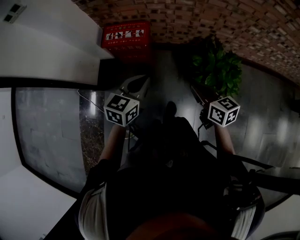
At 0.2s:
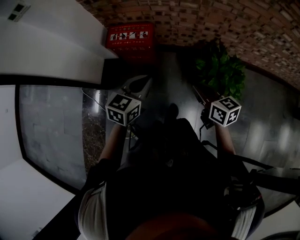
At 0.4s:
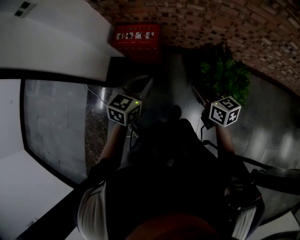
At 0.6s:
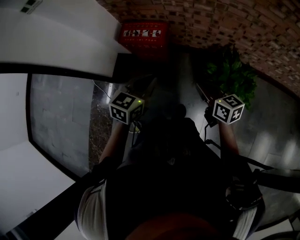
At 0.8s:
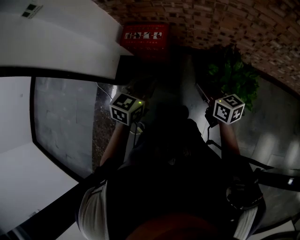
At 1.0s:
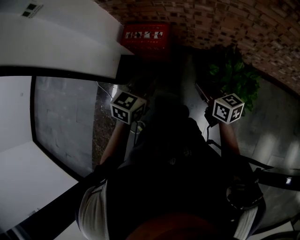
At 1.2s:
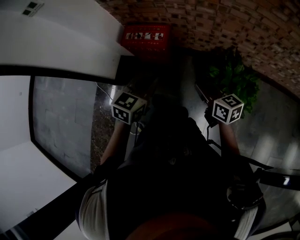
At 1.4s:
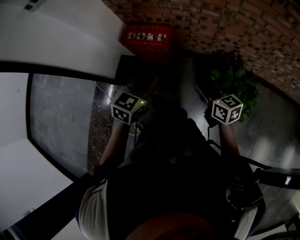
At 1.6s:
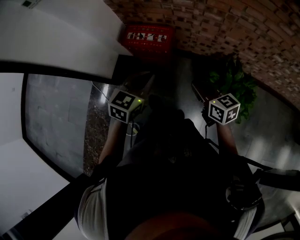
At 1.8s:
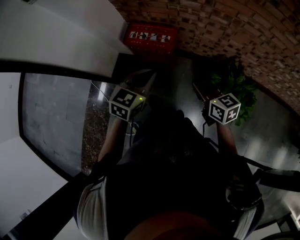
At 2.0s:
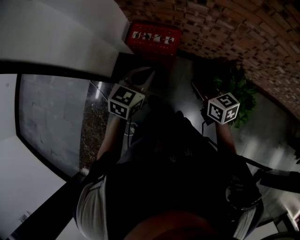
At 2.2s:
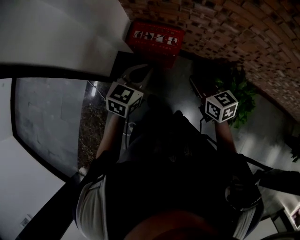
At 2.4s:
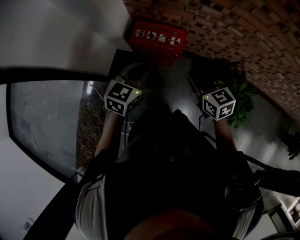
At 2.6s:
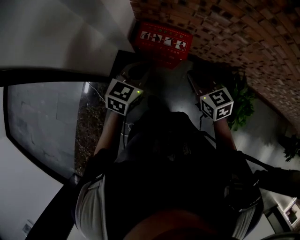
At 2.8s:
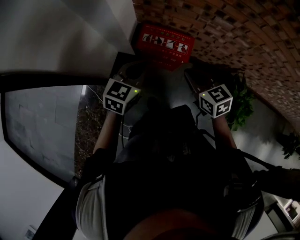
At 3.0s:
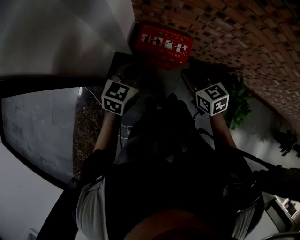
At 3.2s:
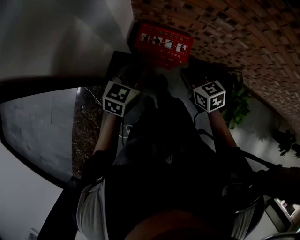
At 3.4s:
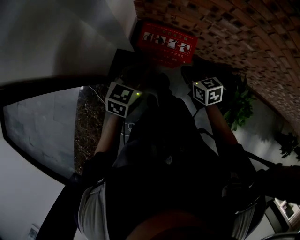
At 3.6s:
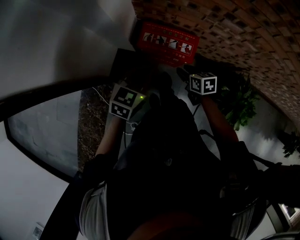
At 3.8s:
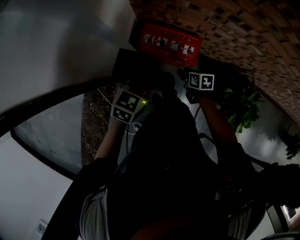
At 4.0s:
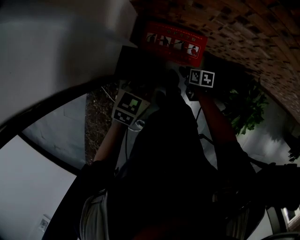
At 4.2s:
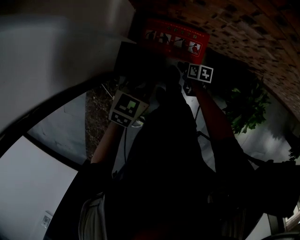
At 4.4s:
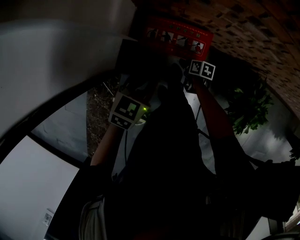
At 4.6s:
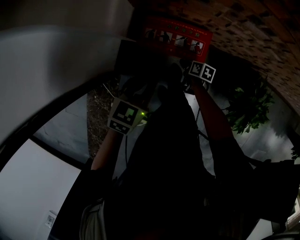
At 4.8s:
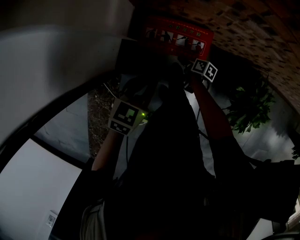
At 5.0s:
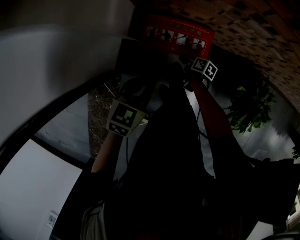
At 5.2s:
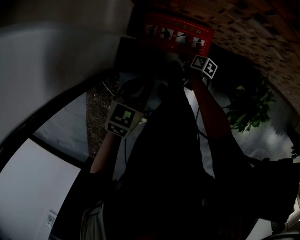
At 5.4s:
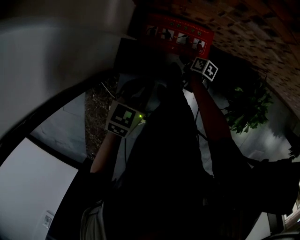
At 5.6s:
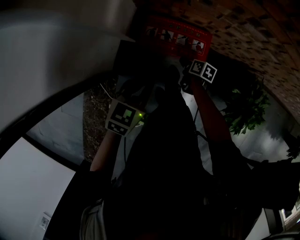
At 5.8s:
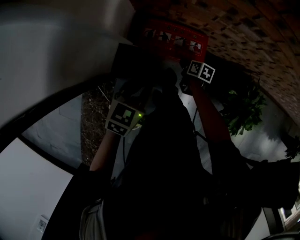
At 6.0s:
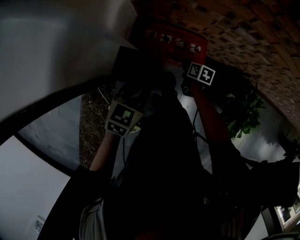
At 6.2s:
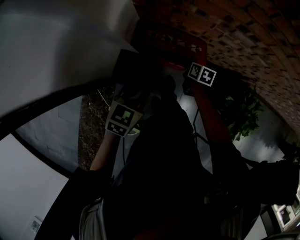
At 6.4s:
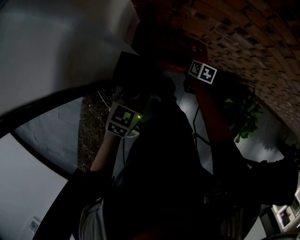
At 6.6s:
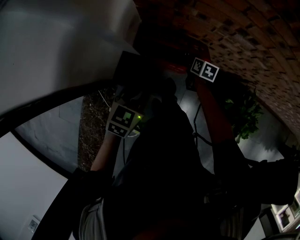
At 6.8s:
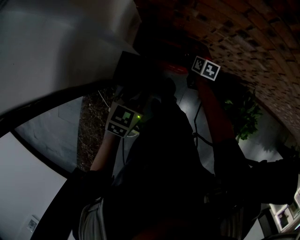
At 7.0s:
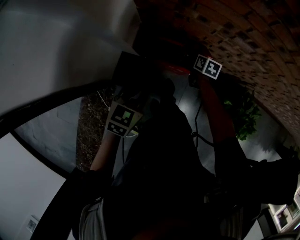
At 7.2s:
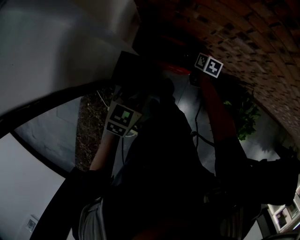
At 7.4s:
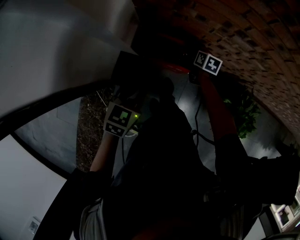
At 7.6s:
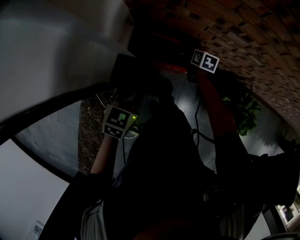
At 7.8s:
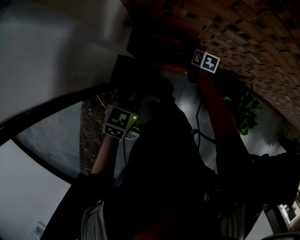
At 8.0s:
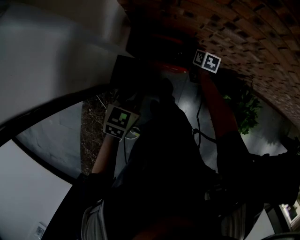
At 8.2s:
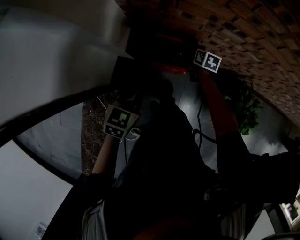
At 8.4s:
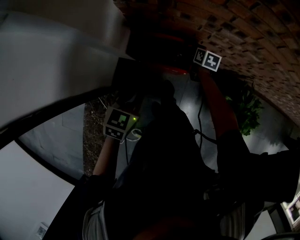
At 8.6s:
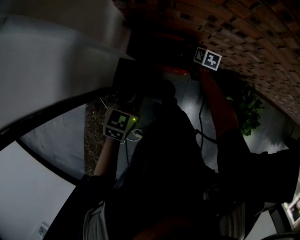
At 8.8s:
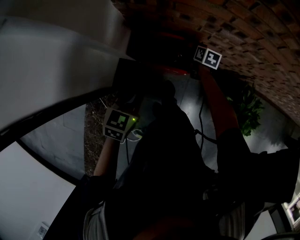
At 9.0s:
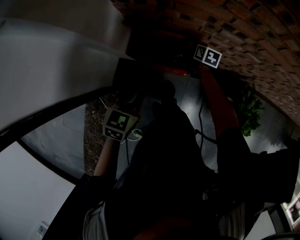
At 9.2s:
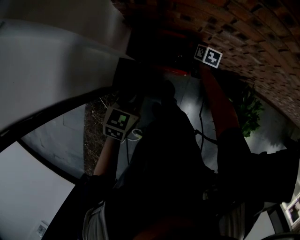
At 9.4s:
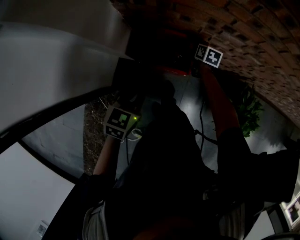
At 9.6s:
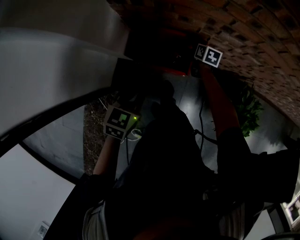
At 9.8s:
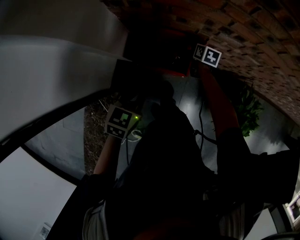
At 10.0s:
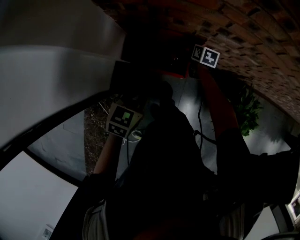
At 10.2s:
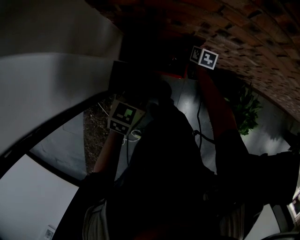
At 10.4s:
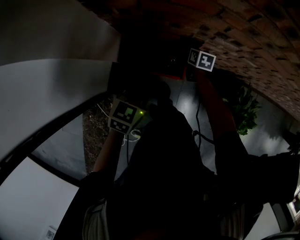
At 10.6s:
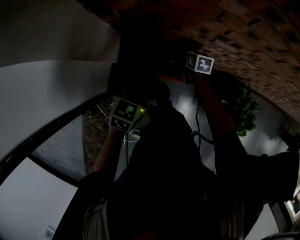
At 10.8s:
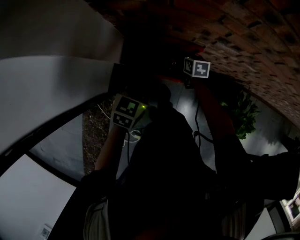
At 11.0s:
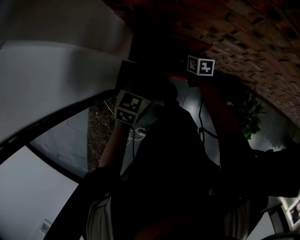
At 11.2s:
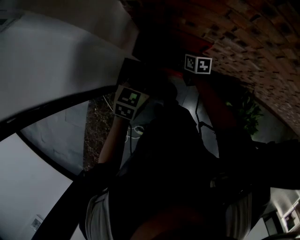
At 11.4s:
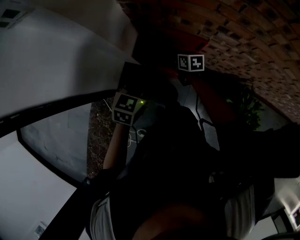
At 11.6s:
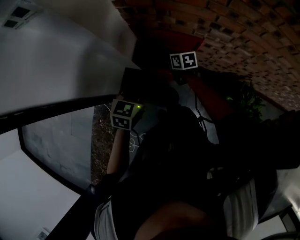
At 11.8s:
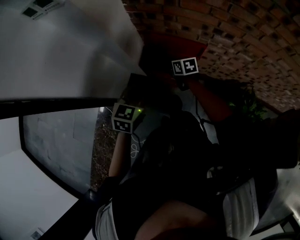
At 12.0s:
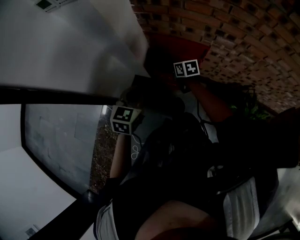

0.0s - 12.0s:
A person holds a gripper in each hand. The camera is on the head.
0.0s - 1.6s: The grippers both shift forward by about 10 cm.
1.6s - 3.0s: Both grippers travel together to the left and forward, some 30 cm.
3.0s - 4.4s: The right gripper is displaced downward by some 35 cm, twists approximately 50 degrees clockwise, seen from behind, and opens up. Meanwhile the left gripper heads downward, forward and to the right, covering some 15 cm.
4.4s - 6.0s: The right gripper travels upward by some 5 cm, and closes.
6.0s - 7.6s: The right gripper heads forward and upward, covering some 15 cm.
7.6s - 9.0s: The grippers move only a little.
9.0s - 10.4s: The left gripper shifts some 10 cm forward.
10.4s - 12.0s: The right gripper moves roughly 25 cm, and rotates roughly 30 degrees. The left gripper moves approximately 20 cm, and swivels about 20 degrees.

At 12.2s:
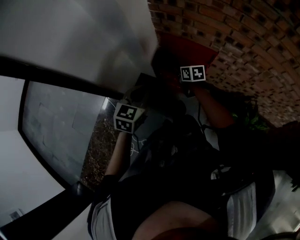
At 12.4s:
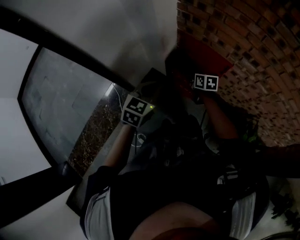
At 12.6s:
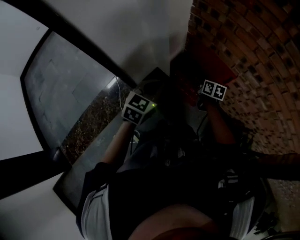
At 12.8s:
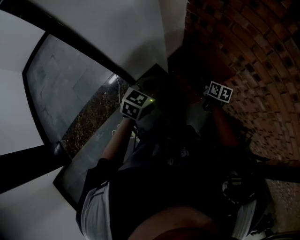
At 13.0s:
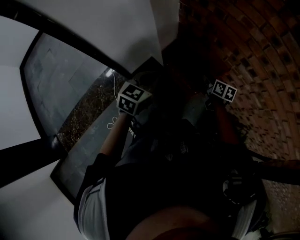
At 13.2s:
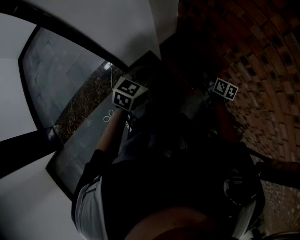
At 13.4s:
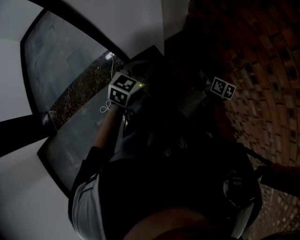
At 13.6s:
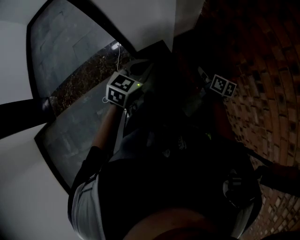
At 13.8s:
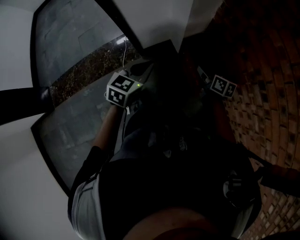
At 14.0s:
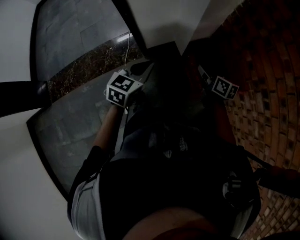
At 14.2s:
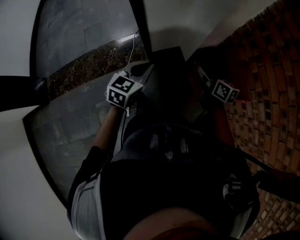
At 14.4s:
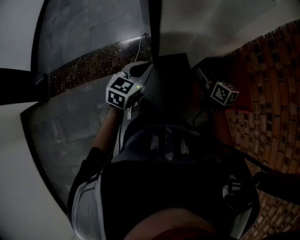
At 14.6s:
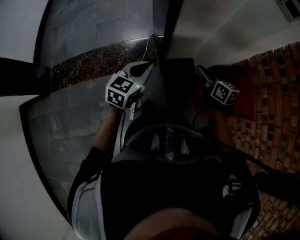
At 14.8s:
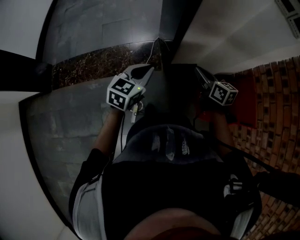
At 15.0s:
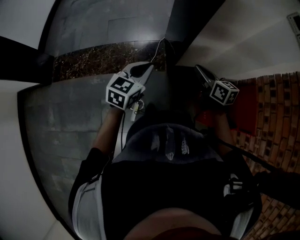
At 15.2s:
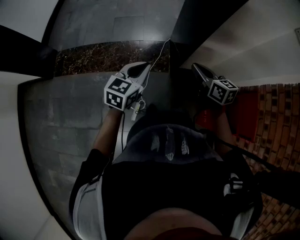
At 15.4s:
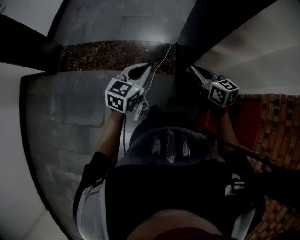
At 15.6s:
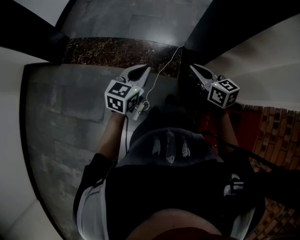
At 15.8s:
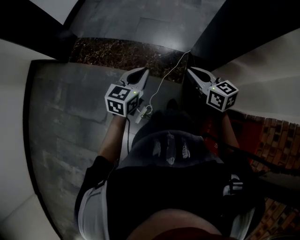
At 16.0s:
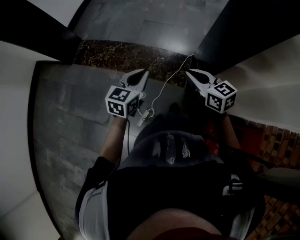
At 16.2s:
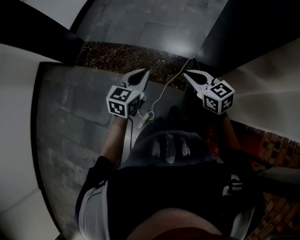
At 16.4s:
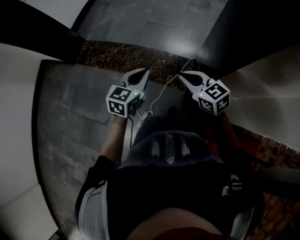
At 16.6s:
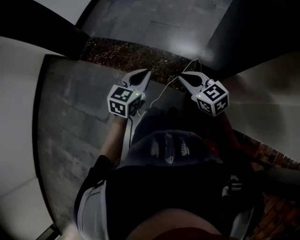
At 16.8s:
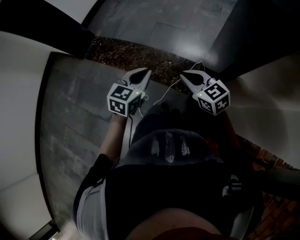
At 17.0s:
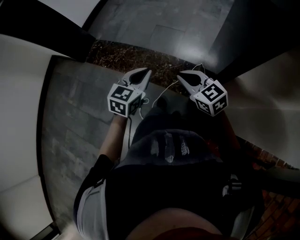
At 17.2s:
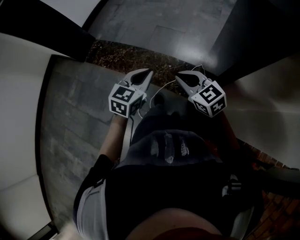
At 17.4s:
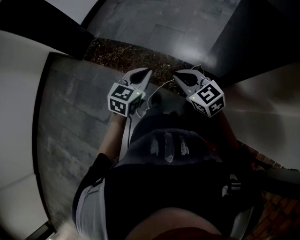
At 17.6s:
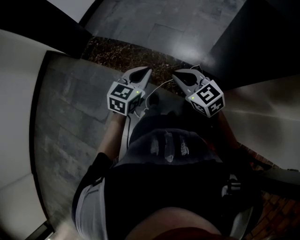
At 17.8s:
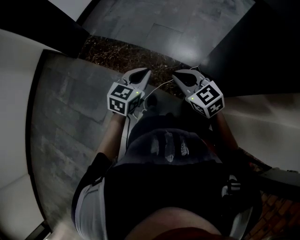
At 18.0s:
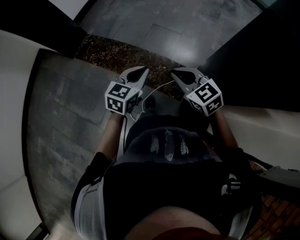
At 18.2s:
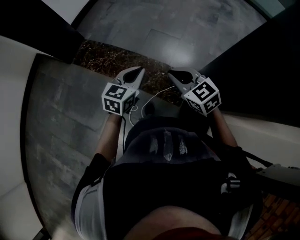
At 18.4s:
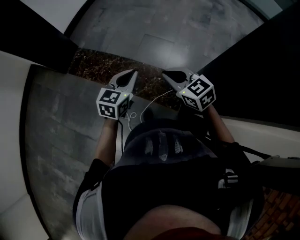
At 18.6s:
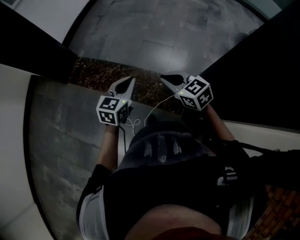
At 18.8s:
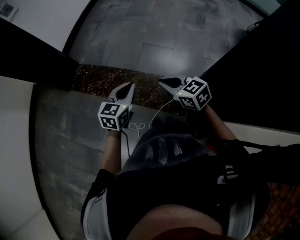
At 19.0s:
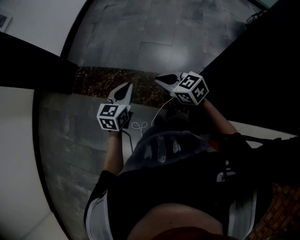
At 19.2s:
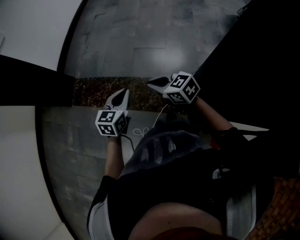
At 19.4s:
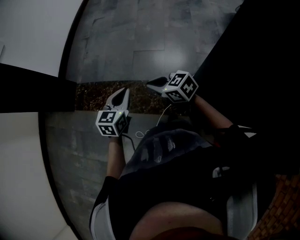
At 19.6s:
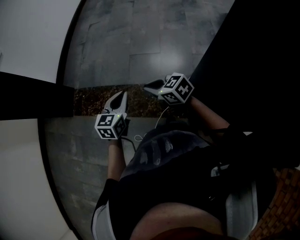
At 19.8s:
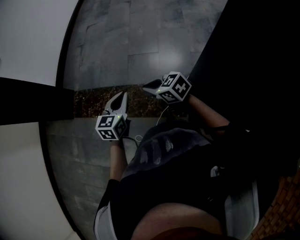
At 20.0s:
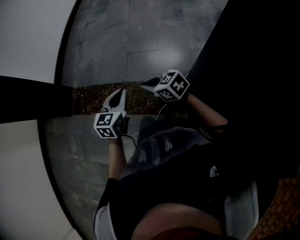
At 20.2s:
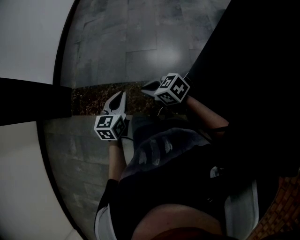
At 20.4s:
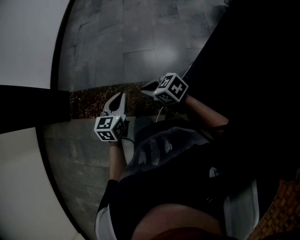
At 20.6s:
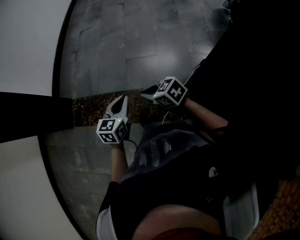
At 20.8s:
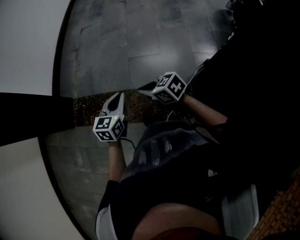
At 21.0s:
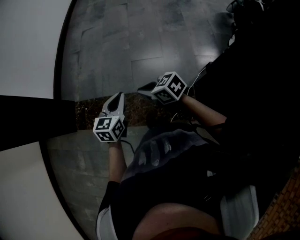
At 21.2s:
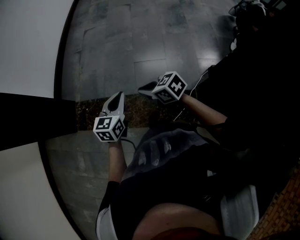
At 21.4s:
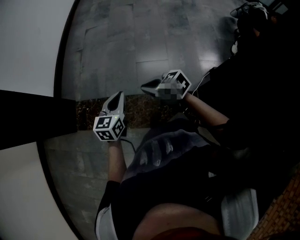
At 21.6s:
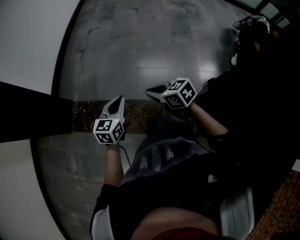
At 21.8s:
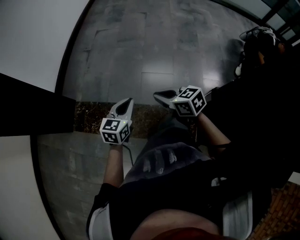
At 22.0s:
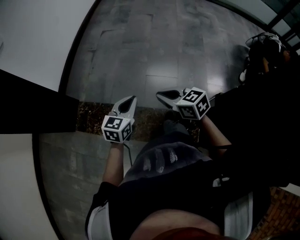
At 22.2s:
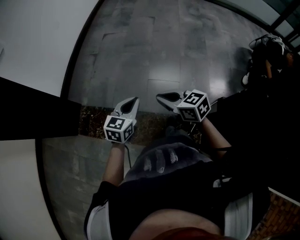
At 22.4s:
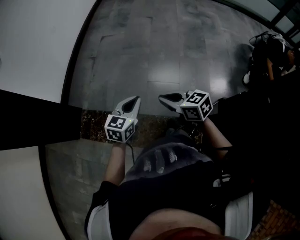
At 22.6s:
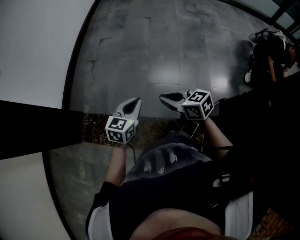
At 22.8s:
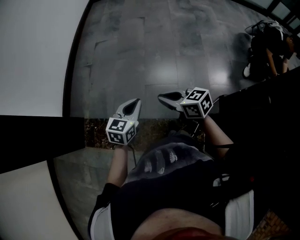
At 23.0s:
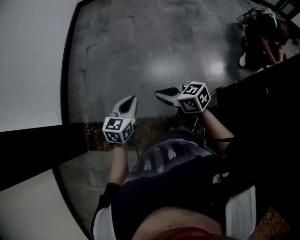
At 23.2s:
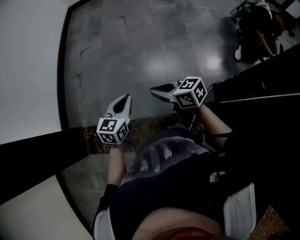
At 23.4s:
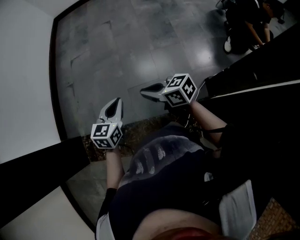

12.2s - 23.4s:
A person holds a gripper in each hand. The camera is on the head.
12.2s - 13.8s: The right gripper changes its angle by some 30 degrees, while the left gripper rotates roughly 30 degrees.
13.8s - 15.4s: The pair of grippers is taken about 50 cm. The left gripper swivels about 30 degrees. Meanwhile the right gripper turns by some 50 degrees.
15.4s - 17.0s: The right gripper shifts by about 15 cm, and rotates roughly 40 degrees. The left gripper changes place by about 15 cm, and swivels roughly 20 degrees.
17.0s - 18.6s: The grippers both shift forward and to the left by some 25 cm.
18.6s - 20.2s: The right gripper heads to the right, downward and forward, covering roughly 10 cm, while the left gripper goes about 10 cm to the right and forward.
20.2s - 21.8s: Both grippers travel together forward and to the left, approximately 25 cm.
21.8s - 23.4s: The grippers both shift to the right and forward by some 30 cm.

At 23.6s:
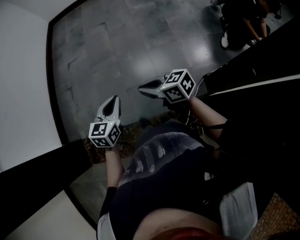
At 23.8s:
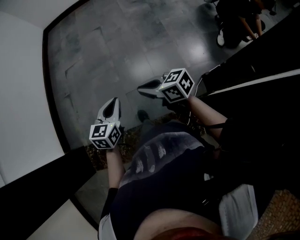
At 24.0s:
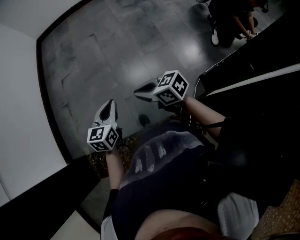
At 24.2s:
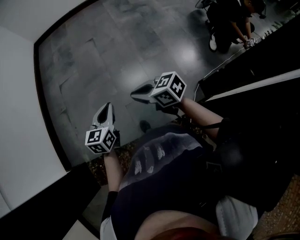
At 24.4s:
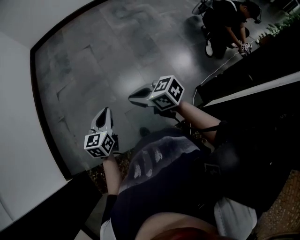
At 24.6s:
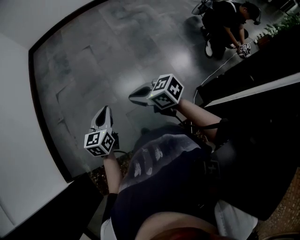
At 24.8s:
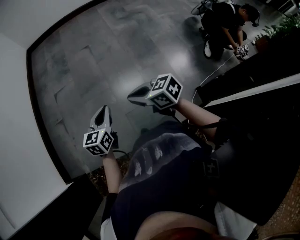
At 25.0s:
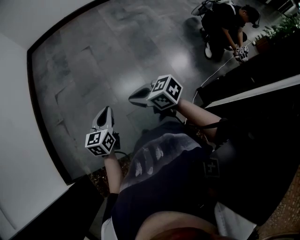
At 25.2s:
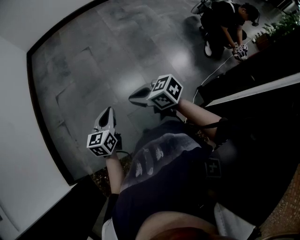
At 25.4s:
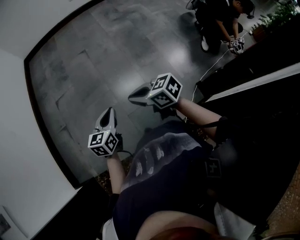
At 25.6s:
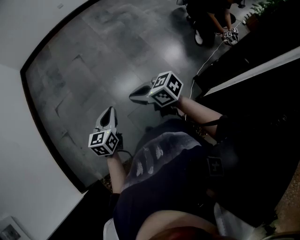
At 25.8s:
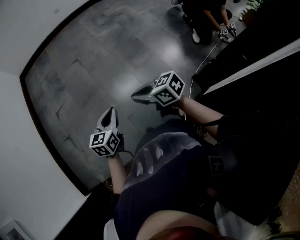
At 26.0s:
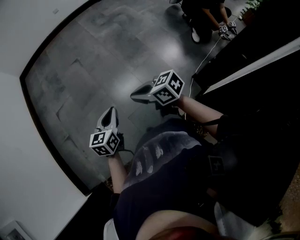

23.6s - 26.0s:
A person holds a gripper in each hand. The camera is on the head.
23.6s - 24.8s: The grippers both shift forward and to the left by some 25 cm.
24.8s - 26.0s: The grippers both shift to the right by about 5 cm.
